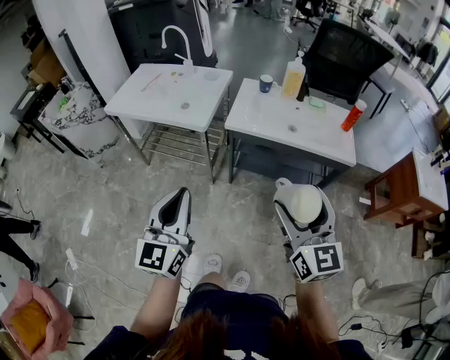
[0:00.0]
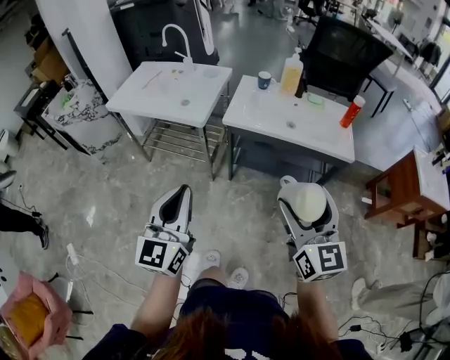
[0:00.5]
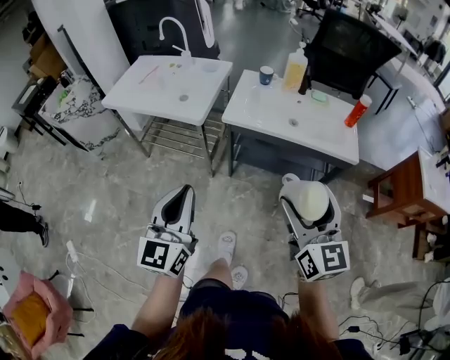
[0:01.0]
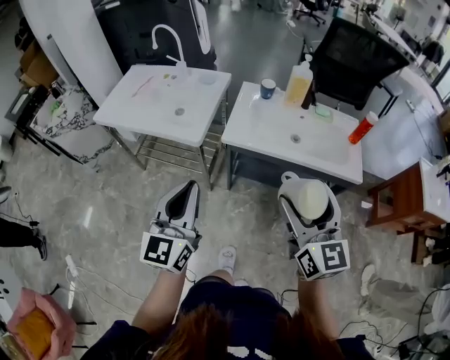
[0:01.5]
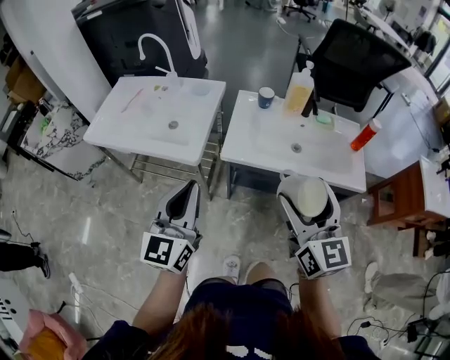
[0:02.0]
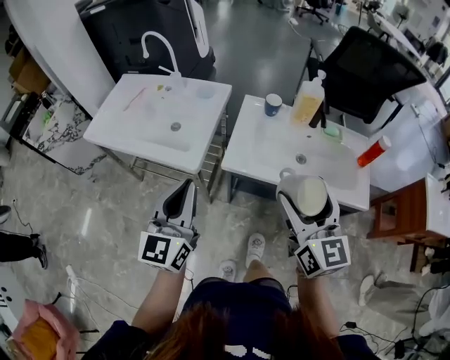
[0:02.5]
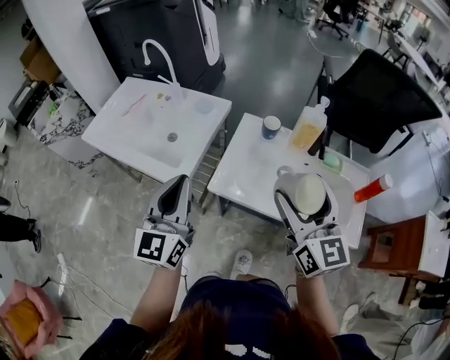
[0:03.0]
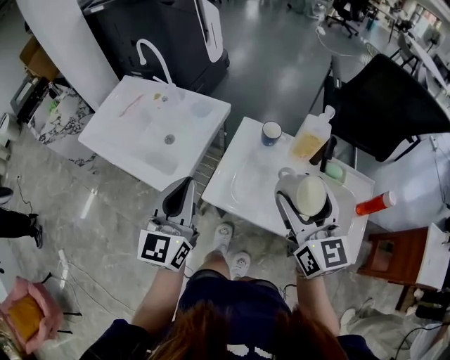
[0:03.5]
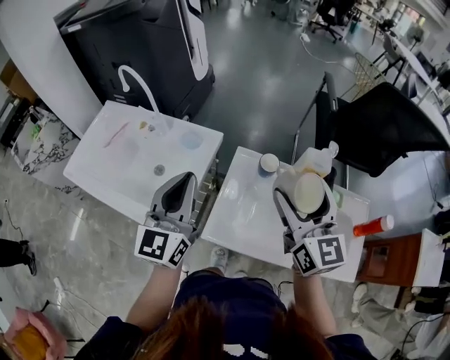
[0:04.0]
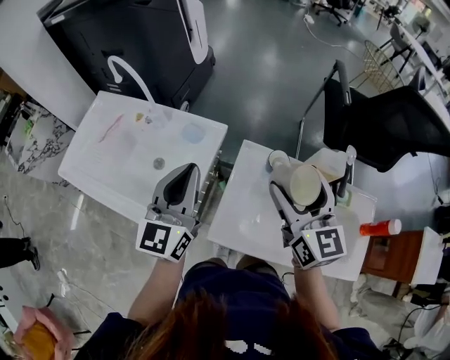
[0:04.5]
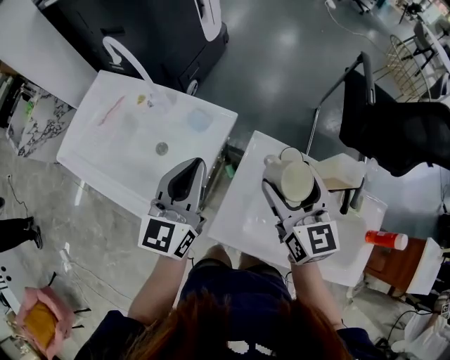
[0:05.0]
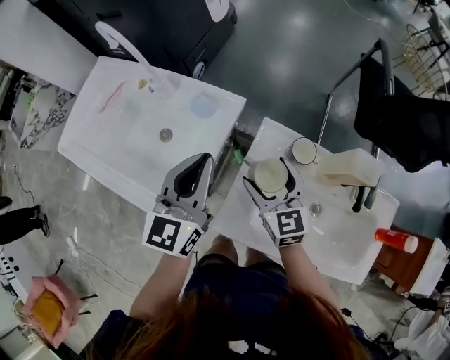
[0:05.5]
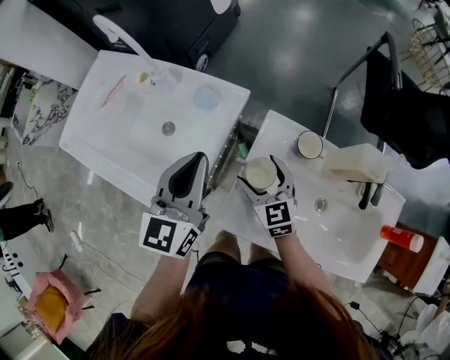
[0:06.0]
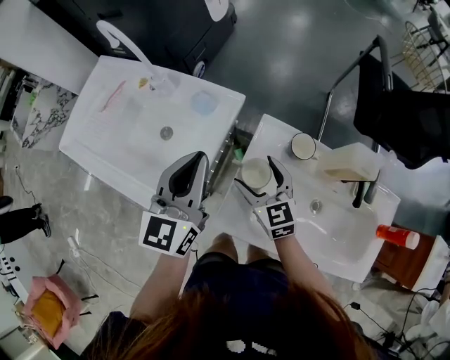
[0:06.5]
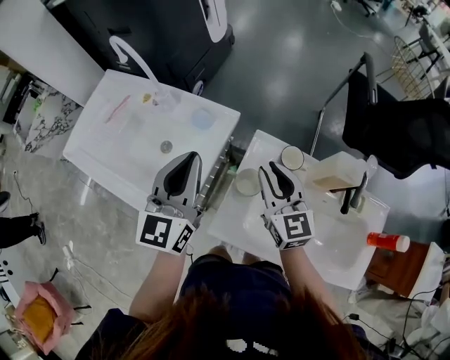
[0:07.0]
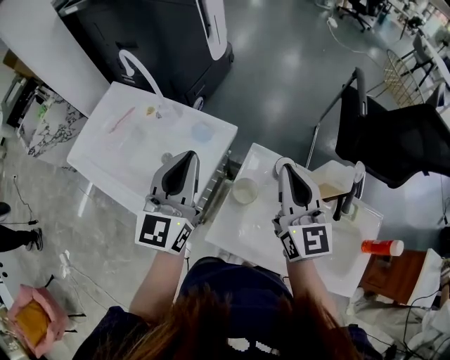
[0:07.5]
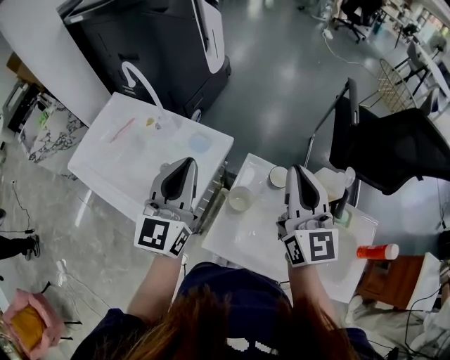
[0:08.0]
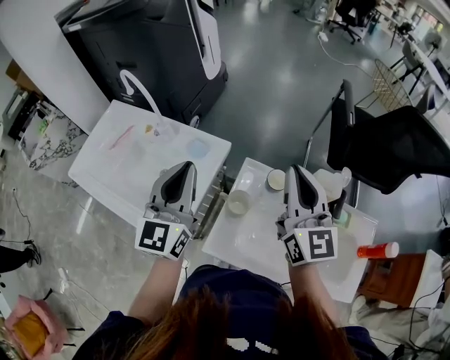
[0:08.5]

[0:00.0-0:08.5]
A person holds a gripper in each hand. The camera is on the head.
0:00.0 to 0:02.0: The two grippers go about 30 cm forward.
0:02.0 to 0:04.0: The two grippers travel together, forward, about 40 cm.
0:04.0 to 0:06.5: The right gripper heads downward, forward and to the left, covering roughly 35 cm, and turns by roughly 30 degrees. Meanwhile the left gripper moves forward and downward, roughly 15 cm.
0:06.5 to 0:08.5: The left gripper moves upward, some 10 cm. Meanwhile the right gripper shifts roughly 30 cm upward and to the right, tilts its fingers some 30 degrees upward, and closes up.

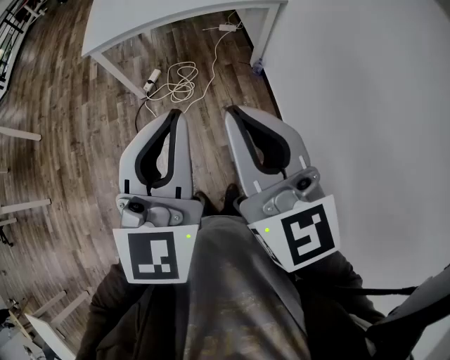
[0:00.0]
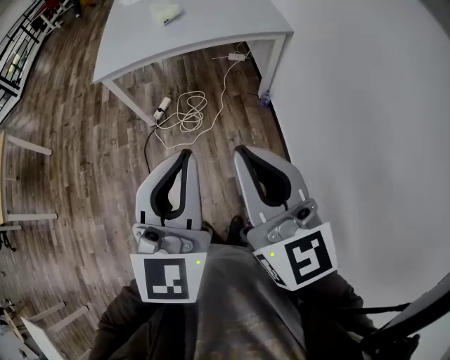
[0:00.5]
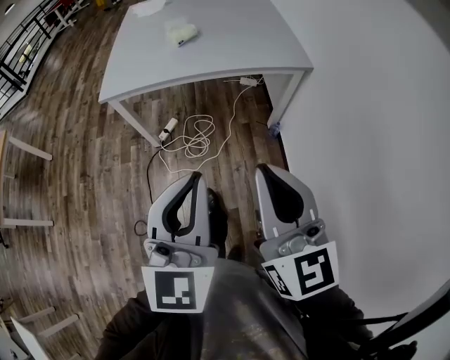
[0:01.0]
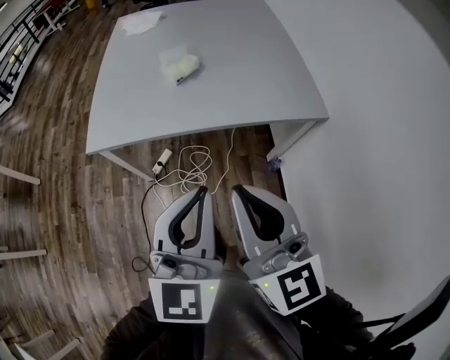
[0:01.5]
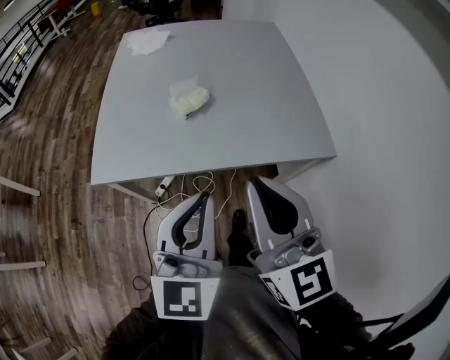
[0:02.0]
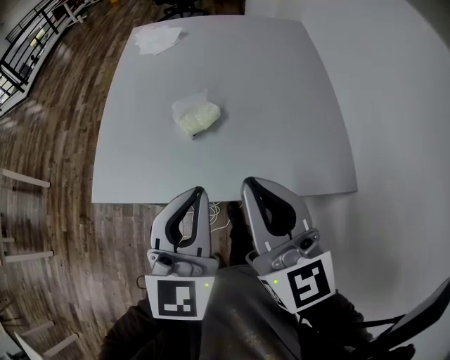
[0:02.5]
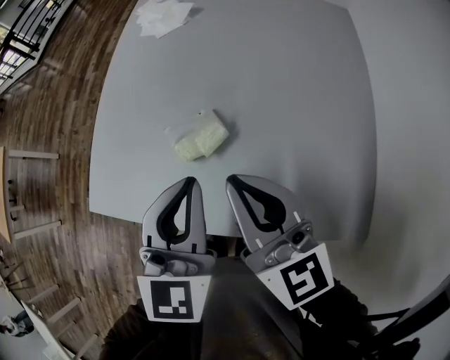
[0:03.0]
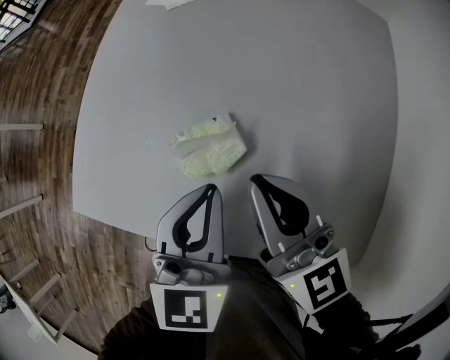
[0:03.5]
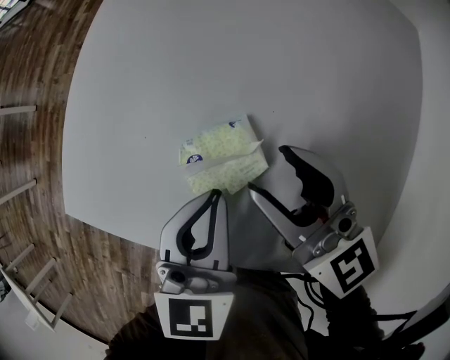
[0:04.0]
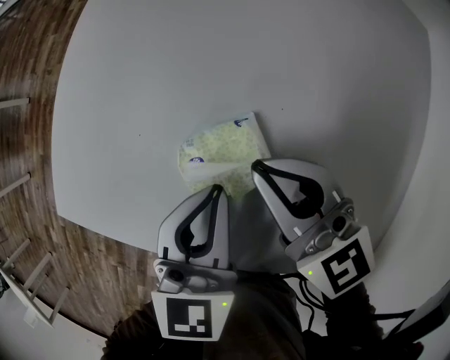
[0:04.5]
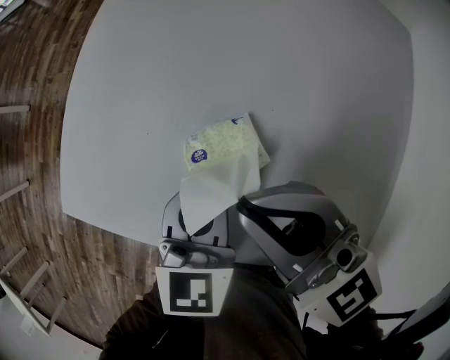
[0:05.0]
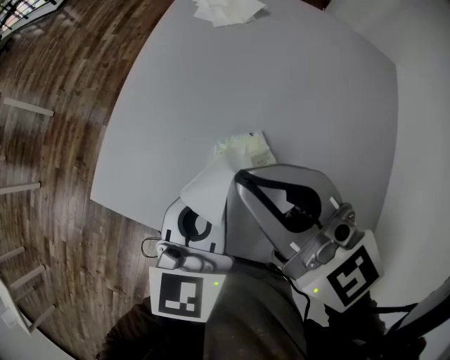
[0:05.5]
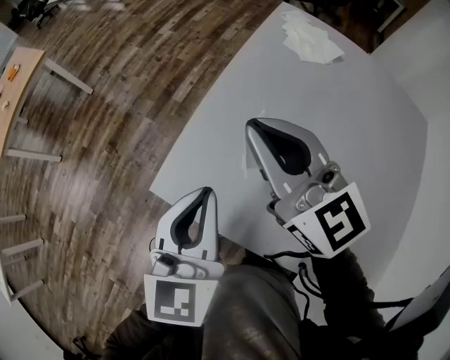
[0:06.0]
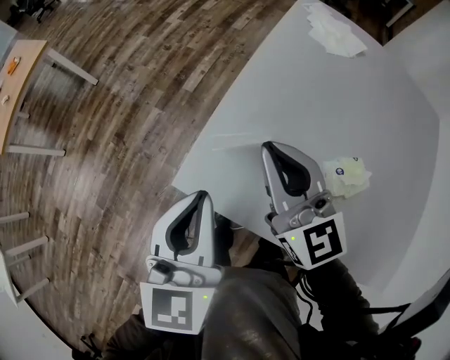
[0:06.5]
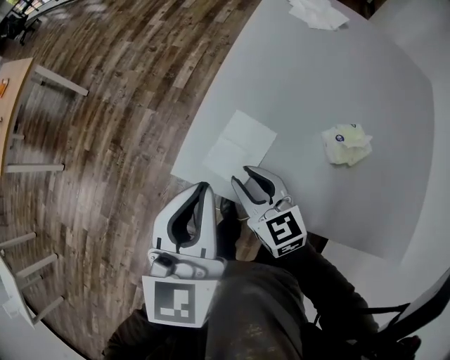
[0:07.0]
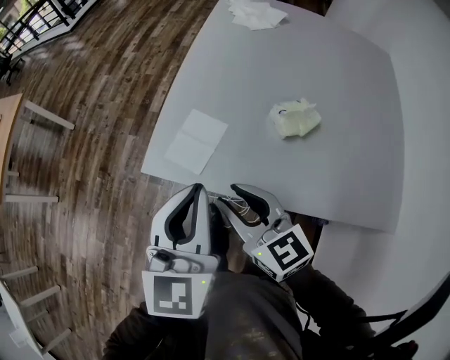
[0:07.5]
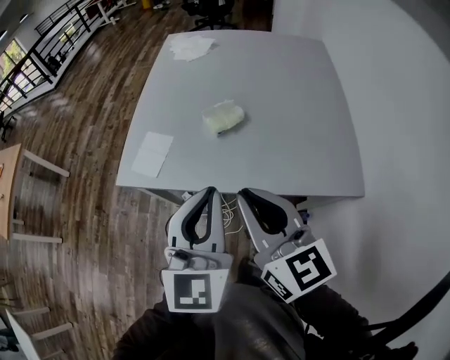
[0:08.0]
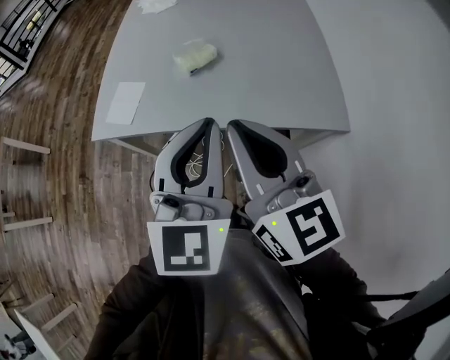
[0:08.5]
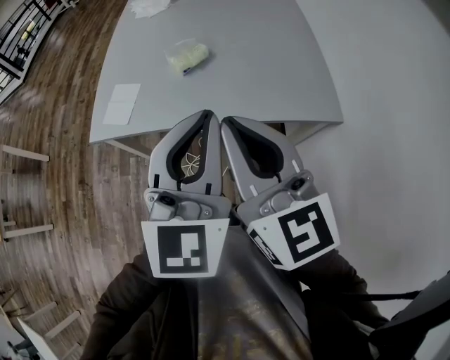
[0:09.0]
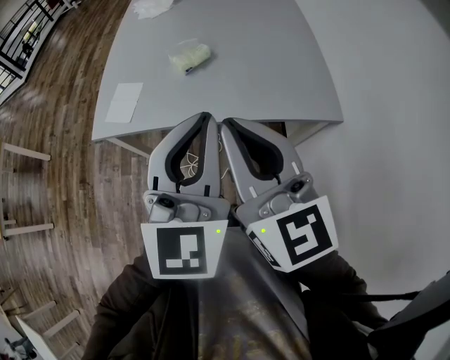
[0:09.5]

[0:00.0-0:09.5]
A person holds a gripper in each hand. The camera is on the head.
0:00.0 to 0:02.0: The two grippers travel together, forward, approximately 50 cm.
0:02.0 to 0:04.0: The two grippers travel together, roughly 40 cm. The right gripper turns by approximately 40 degrees, and opens up, while the left gripper changes its angle by approximately 30 degrees.
0:04.0 to 0:05.5: The right gripper is displaced upward and to the left by some 20 cm, and closes up, while the left gripper moves upward and to the left, some 10 cm.
0:05.5 to 0:07.5: The right gripper goes approximately 30 cm to the left, downward and backward, swivels about 20 degrees, and opens its fingers. The left gripper goes some 25 cm to the left.
0:07.5 to 0:09.5: The left gripper goes roughly 35 cm to the right, backward and upward, and swivels about 30 degrees. The right gripper is displaced to the right, upward and backward by roughly 35 cm, swivels some 30 degrees, and closes.

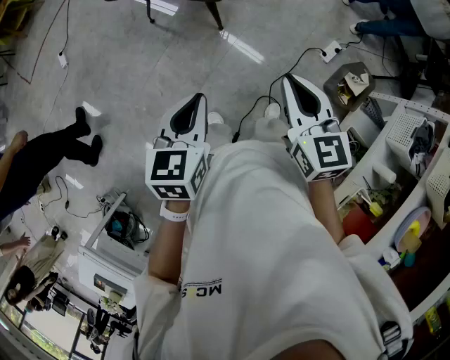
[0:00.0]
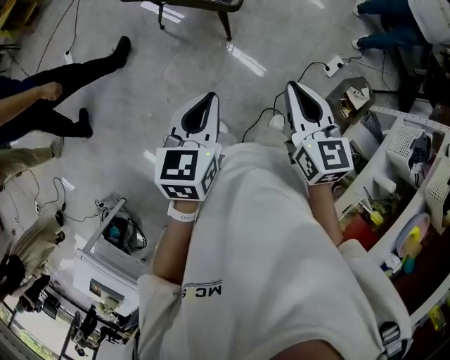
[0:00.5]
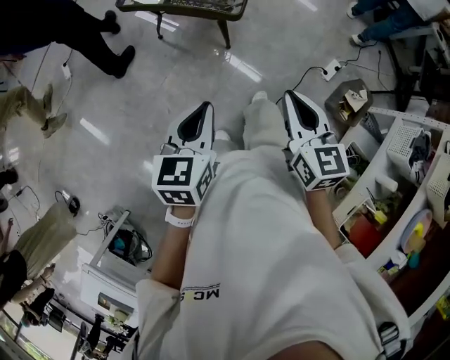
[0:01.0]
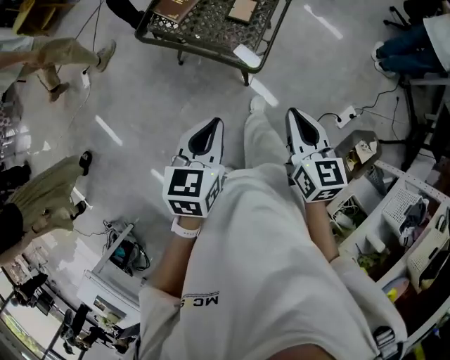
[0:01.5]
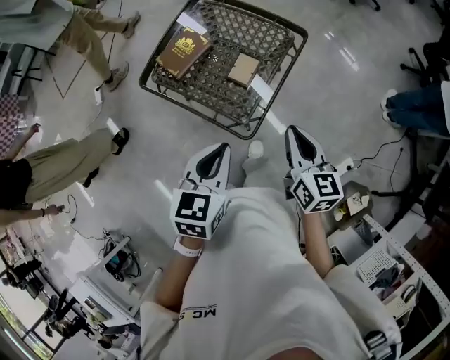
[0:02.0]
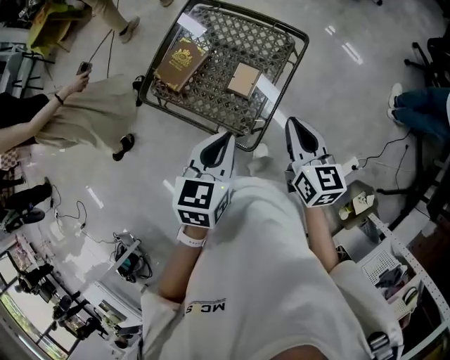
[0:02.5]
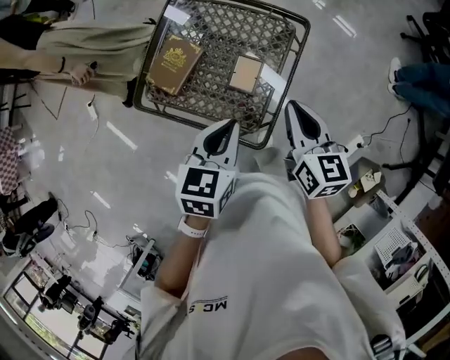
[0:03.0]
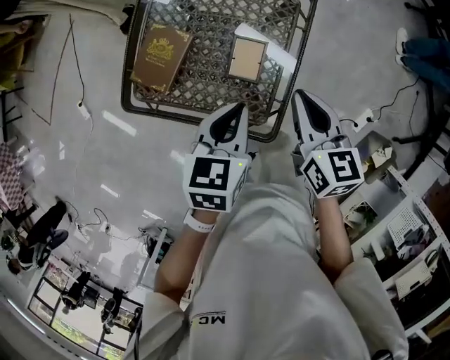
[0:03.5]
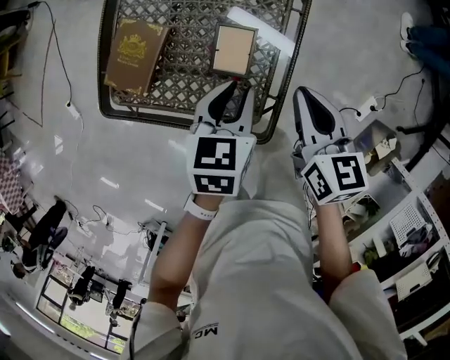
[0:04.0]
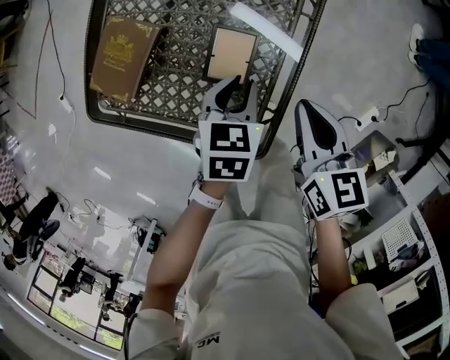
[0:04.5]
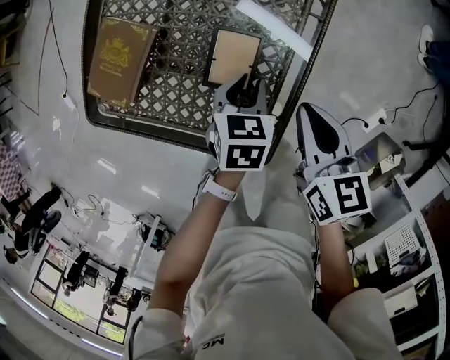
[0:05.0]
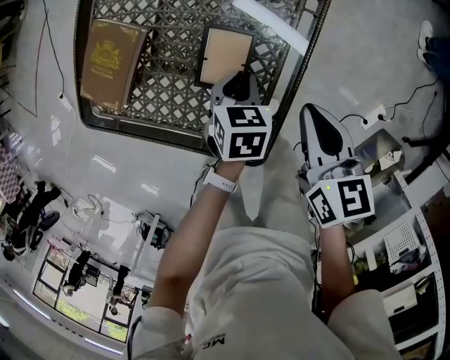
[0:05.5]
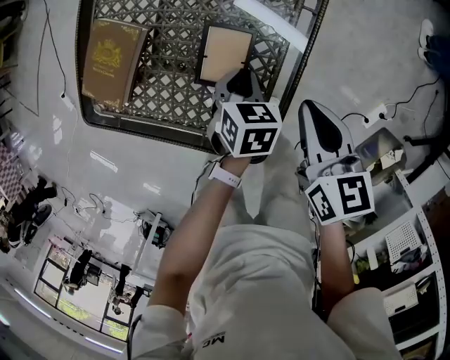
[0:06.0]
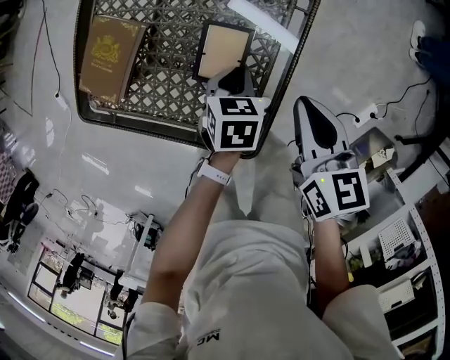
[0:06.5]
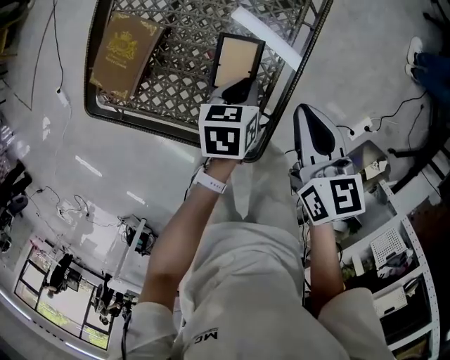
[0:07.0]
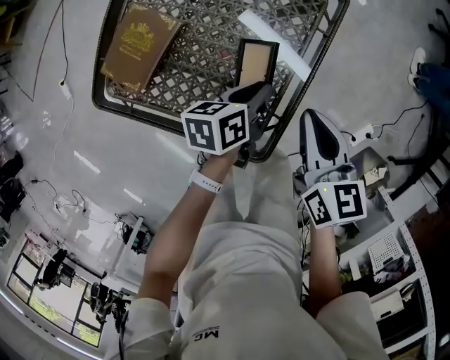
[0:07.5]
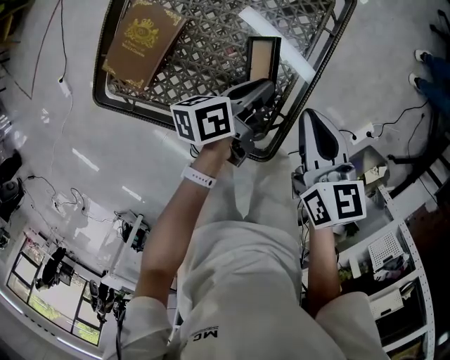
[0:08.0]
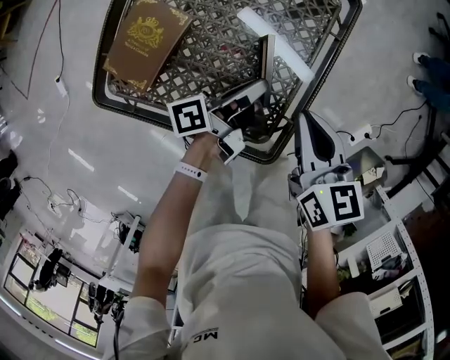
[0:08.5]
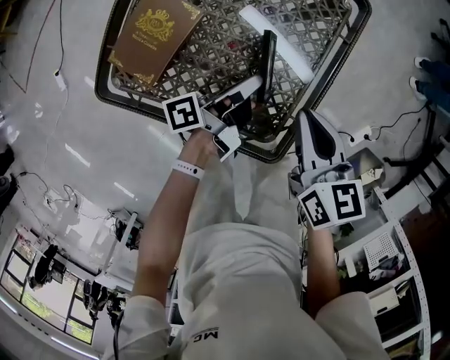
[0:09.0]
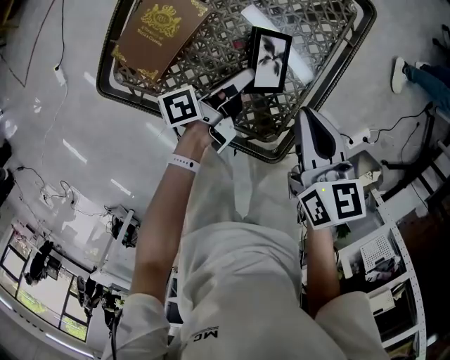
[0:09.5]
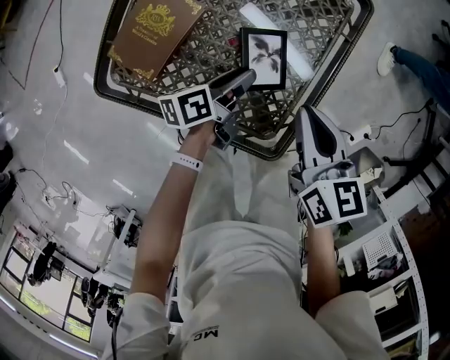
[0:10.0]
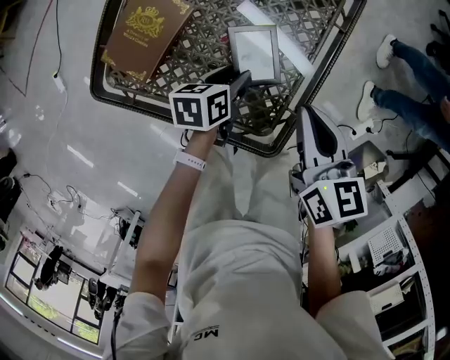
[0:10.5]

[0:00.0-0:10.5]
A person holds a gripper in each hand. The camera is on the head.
0:00.0 to 0:02.0: The two grippers travel together, forward, approximately 40 cm.
0:02.0 to 0:04.0: Both grippers move forward and downward, roughly 25 cm.
0:04.0 to 0:06.5: The left gripper heads downward, covering approximately 15 cm. Meanwhile the right gripper is displaced downward by about 5 cm.
0:06.5 to 0:08.5: The left gripper travels upward by approximately 10 cm, and points its fingers approximately 60 degrees further upward, while the right gripper goes some 10 cm to the left.
0:08.5 to 0:10.5: The left gripper goes roughly 10 cm downward and to the left, angles its fingers downward, by about 40 degrees, and opens its fingers.
